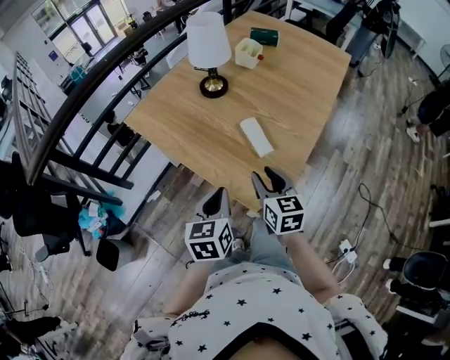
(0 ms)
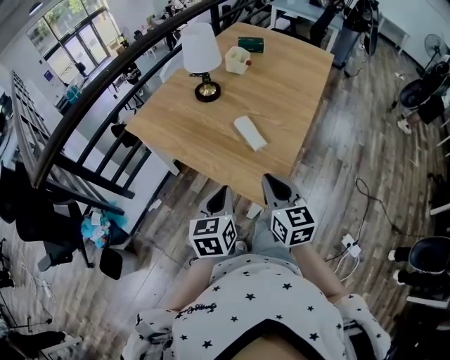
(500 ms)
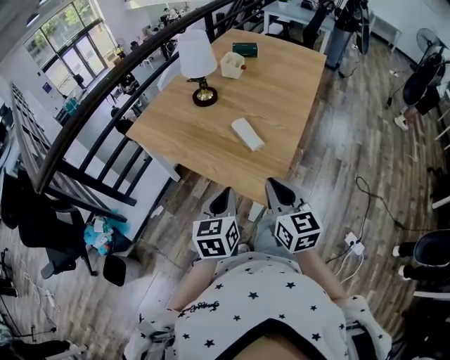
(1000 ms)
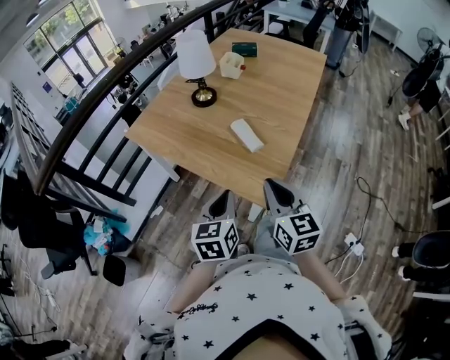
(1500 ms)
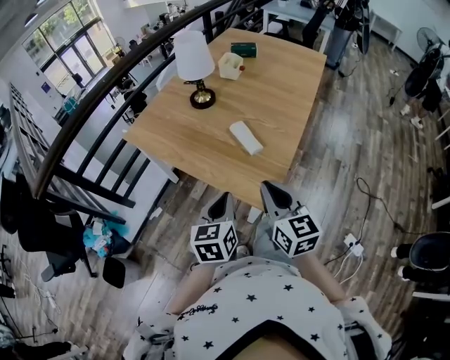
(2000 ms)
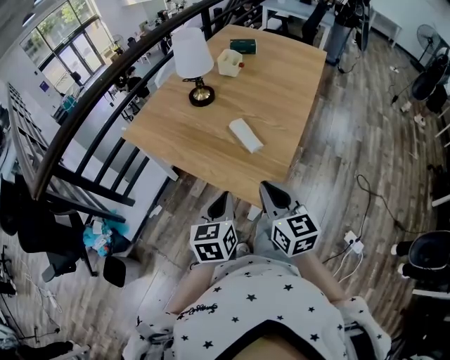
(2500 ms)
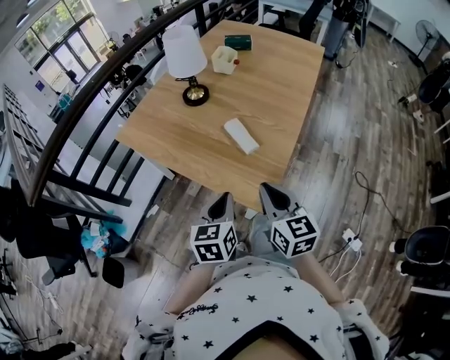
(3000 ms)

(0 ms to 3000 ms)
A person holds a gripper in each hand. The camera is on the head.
0 ms - 1500 ms: The right gripper moves backward and upward, approximately 15 cm, and closes. Meanwhile the left gripper shifts approximately 5 cm backward.
1500 ms - 3000 ms: The grippers make only small movements.

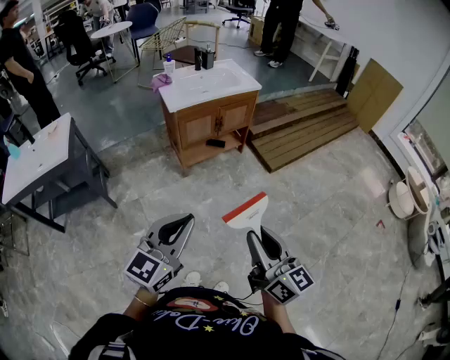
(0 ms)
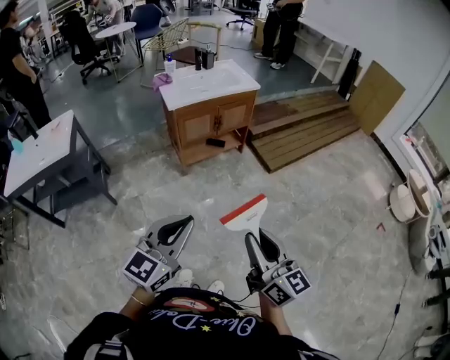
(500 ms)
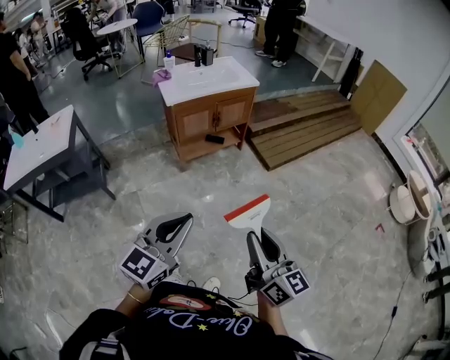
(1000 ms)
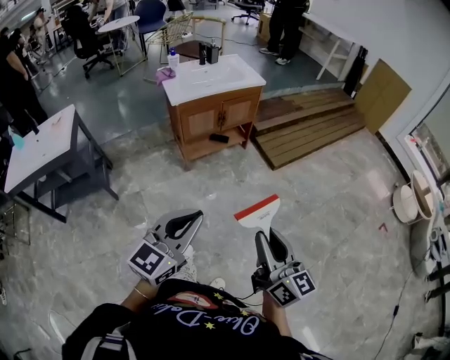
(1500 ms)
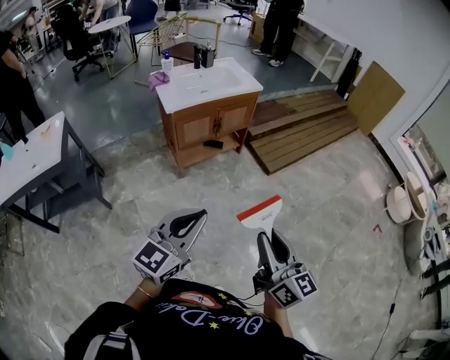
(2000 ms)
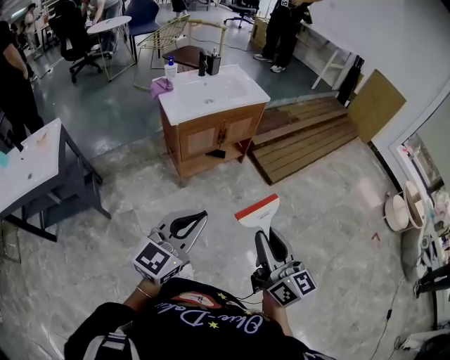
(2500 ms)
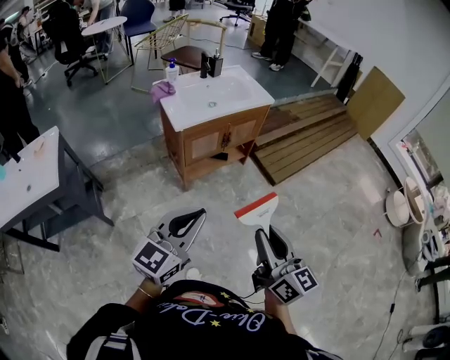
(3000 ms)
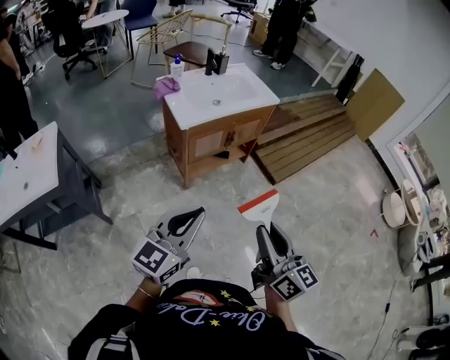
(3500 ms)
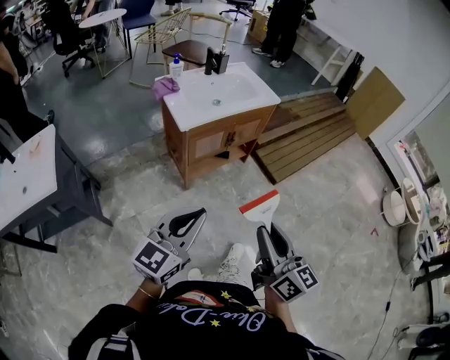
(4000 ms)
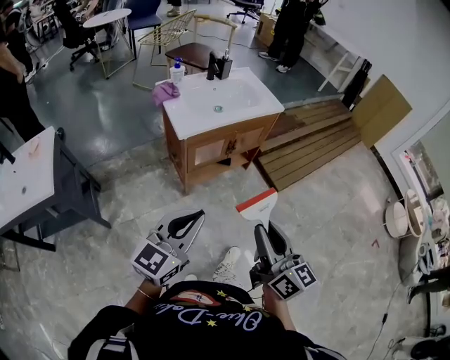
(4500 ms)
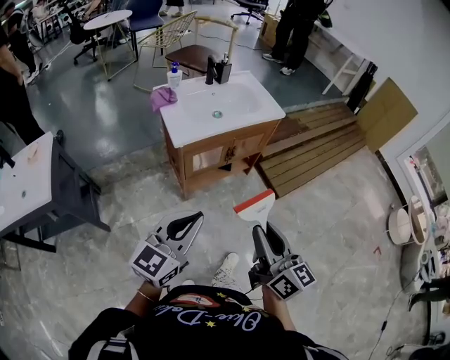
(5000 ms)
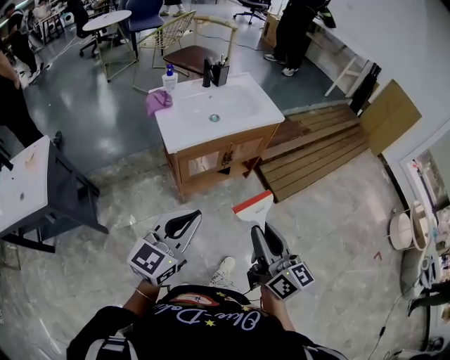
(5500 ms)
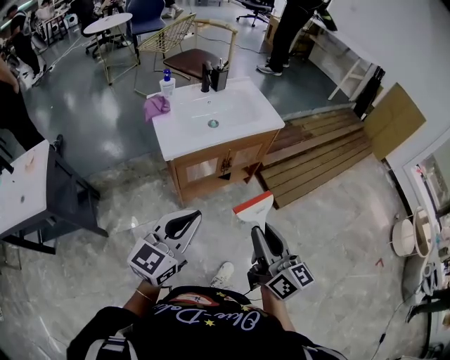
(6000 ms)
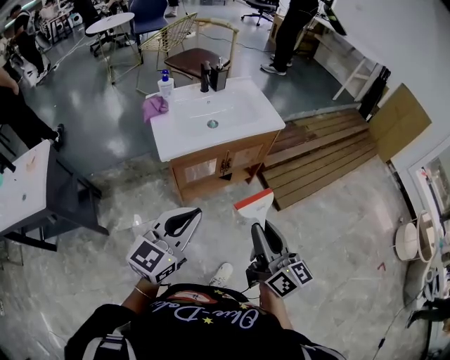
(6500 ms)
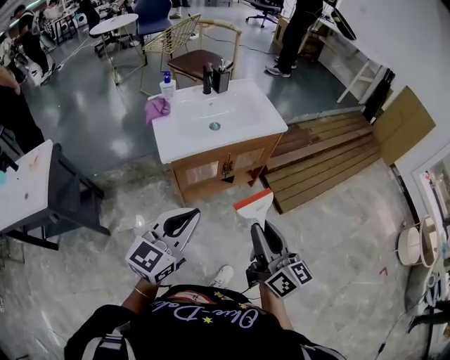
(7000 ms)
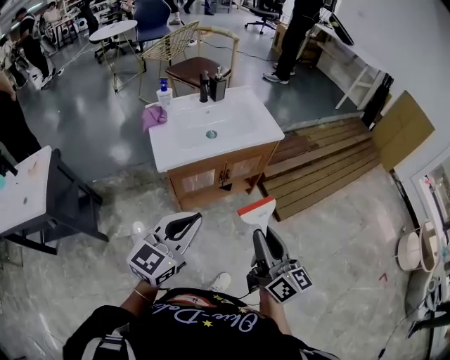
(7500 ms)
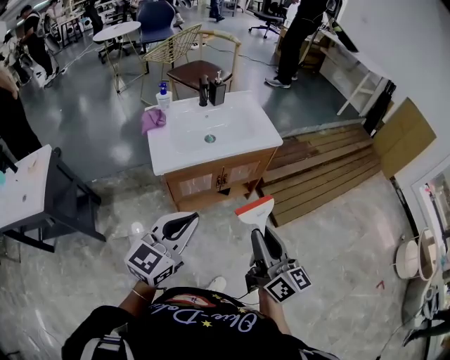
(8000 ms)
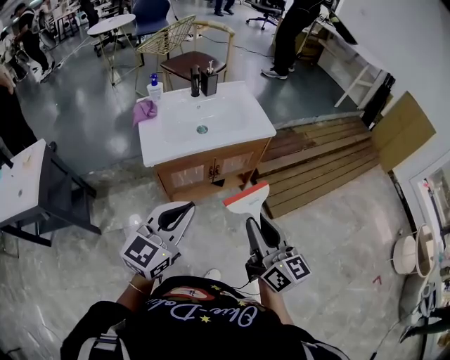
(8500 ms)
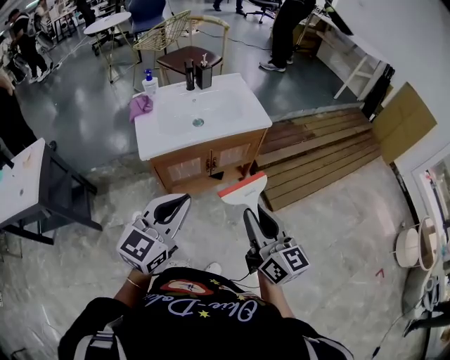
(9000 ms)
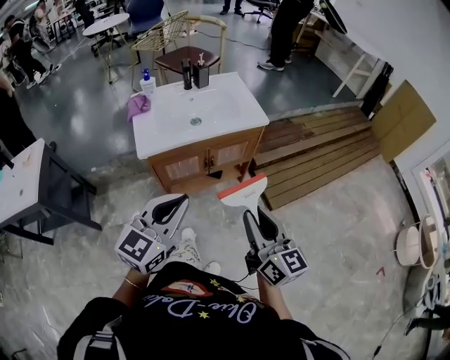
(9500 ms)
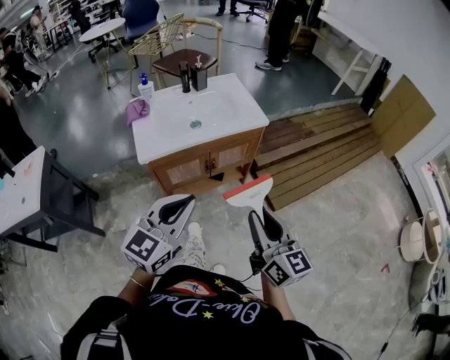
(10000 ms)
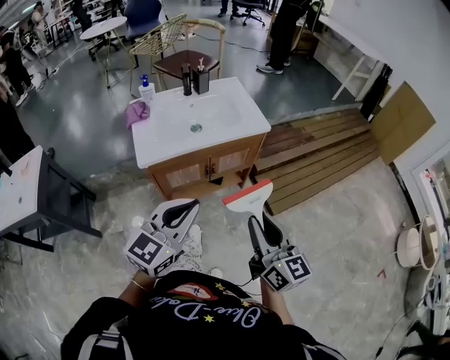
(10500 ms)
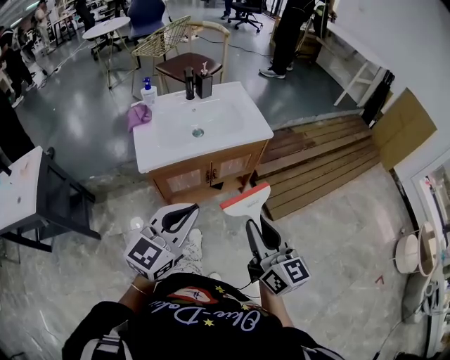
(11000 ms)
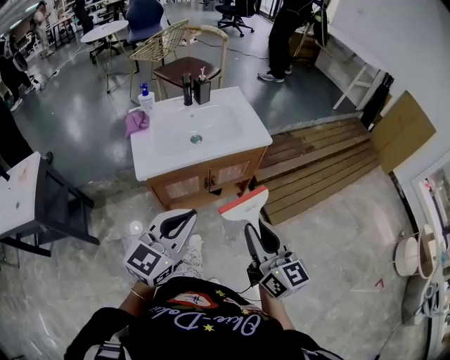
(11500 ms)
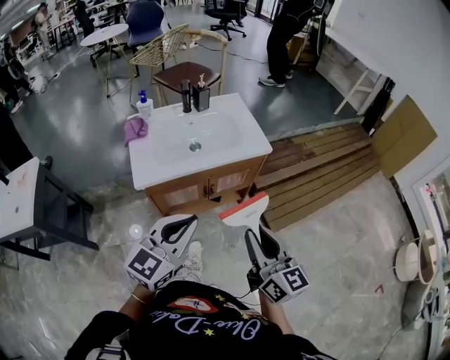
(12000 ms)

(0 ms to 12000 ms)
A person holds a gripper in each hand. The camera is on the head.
0 ms - 2000 ms: The left gripper goes approximately 5 cm forward.
2000 ms - 4000 ms: Both grippers travel together to the left and forward, some 20 cm.
4000 ms - 6000 ms: The two grippers go about 15 cm forward.
6000 ms - 8000 ms: The grippers both shift forward by approximately 5 cm.
8000 ms - 10000 ms: The left gripper heads to the right, covering some 5 cm.
10000 ms - 12000 ms: The two grippers go approximately 5 cm forward.

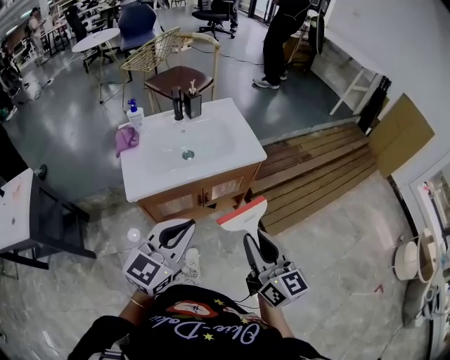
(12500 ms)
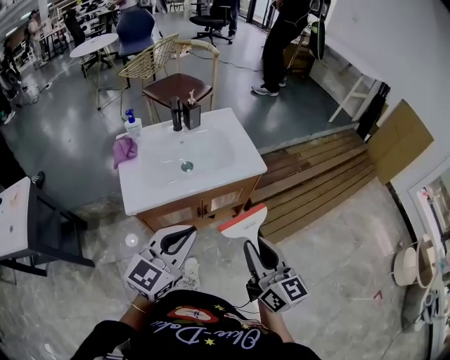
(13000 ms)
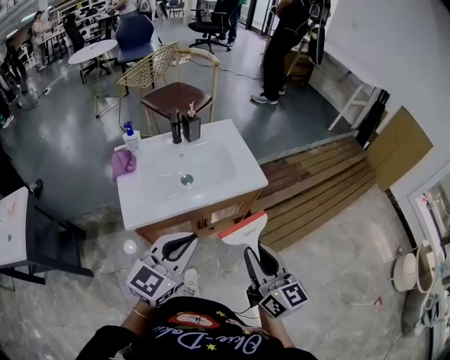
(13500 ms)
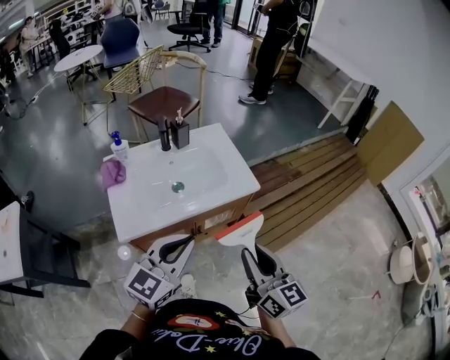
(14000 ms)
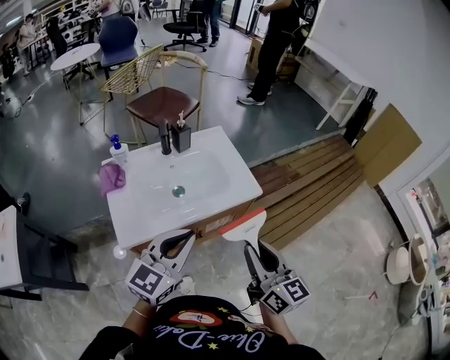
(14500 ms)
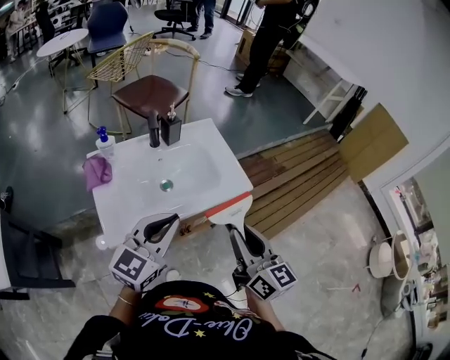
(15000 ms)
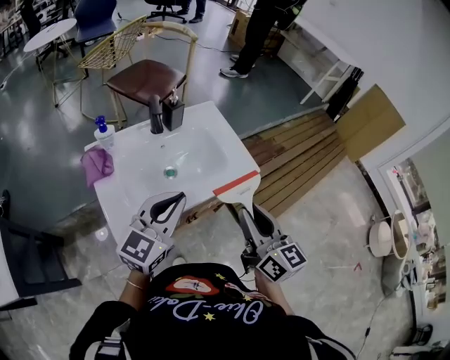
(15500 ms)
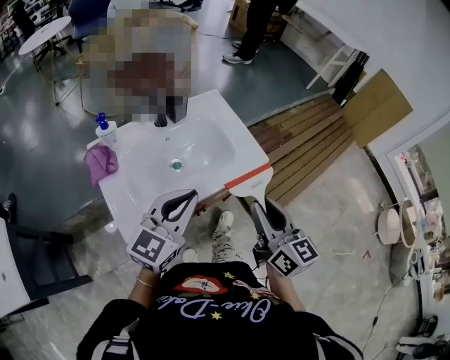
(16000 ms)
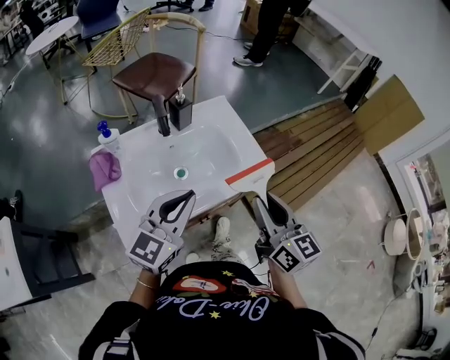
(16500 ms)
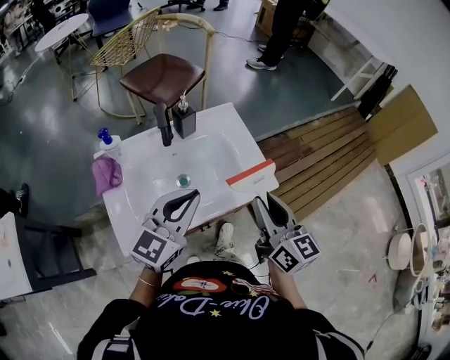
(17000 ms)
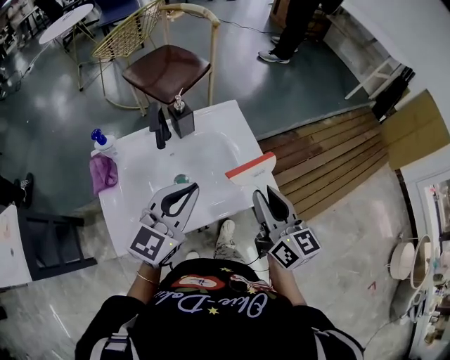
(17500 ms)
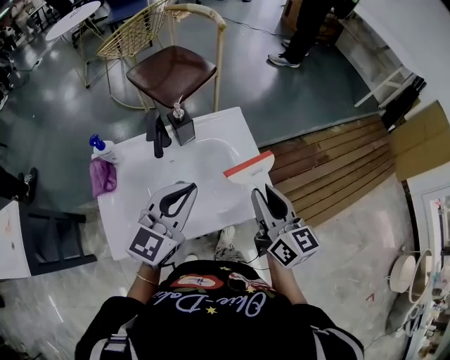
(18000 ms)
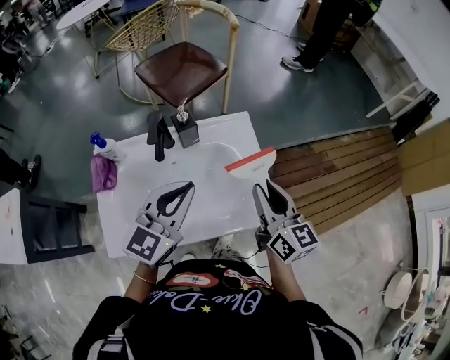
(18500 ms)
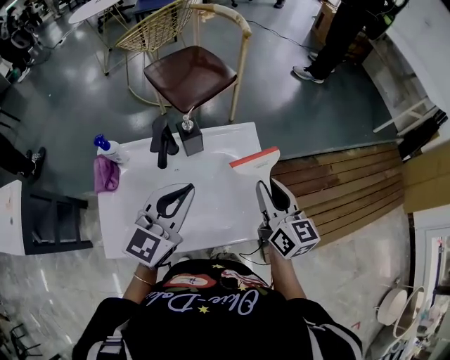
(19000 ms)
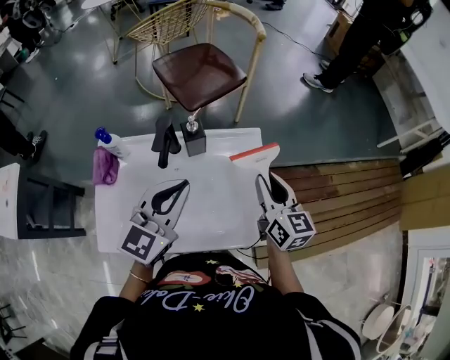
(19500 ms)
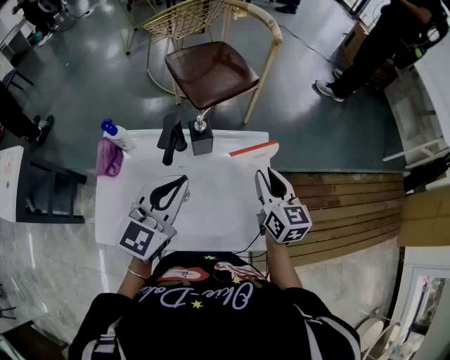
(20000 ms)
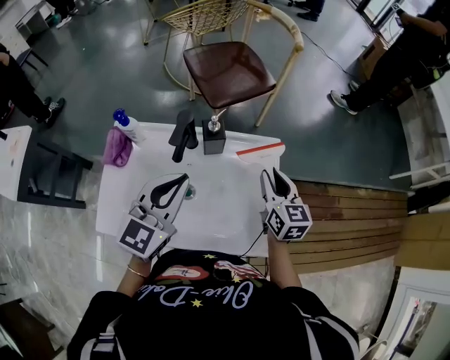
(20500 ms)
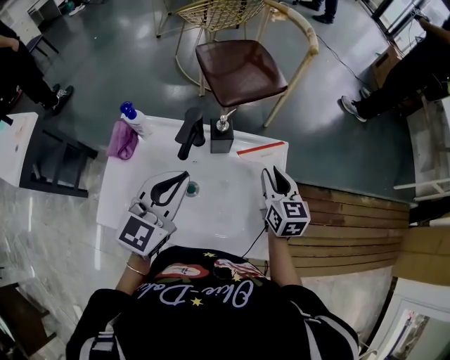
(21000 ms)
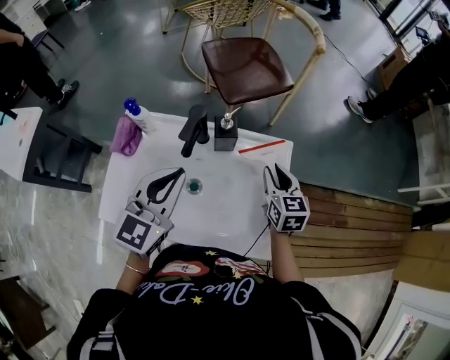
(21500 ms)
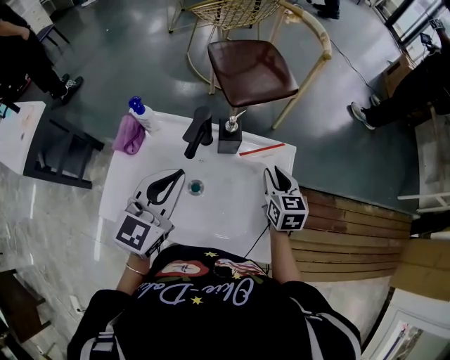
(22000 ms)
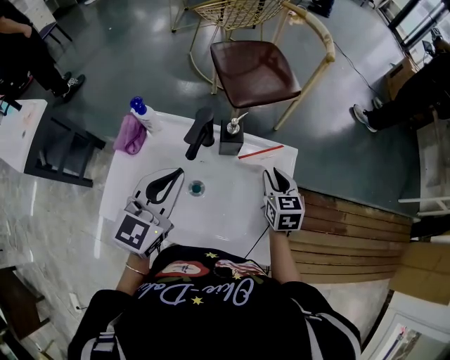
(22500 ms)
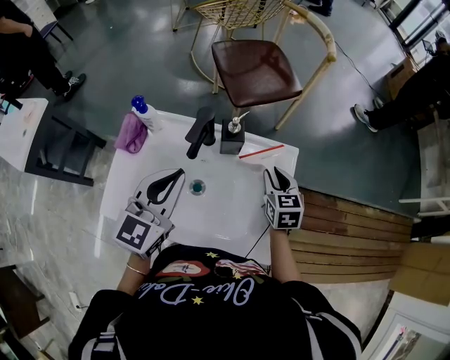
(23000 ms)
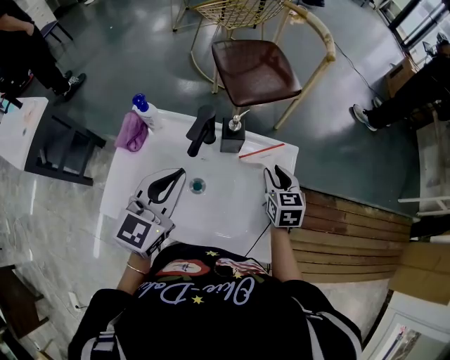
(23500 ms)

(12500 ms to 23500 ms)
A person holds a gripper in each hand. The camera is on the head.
12500 ms - 14500 ms: Both grippers travel together forward, some 10 cm.
14500 ms - 16000 ms: The grippers both shift forward by roughly 5 cm.
16000 ms - 18000 ms: The two grippers go roughly 15 cm forward.
18000 ms - 20000 ms: The left gripper heads forward, covering some 5 cm. Meanwhile the right gripper is displaced forward by some 15 cm.
20000 ms - 21500 ms: The right gripper moves downward, some 5 cm.
21500 ms - 23500 ms: The grippers make only small movements.

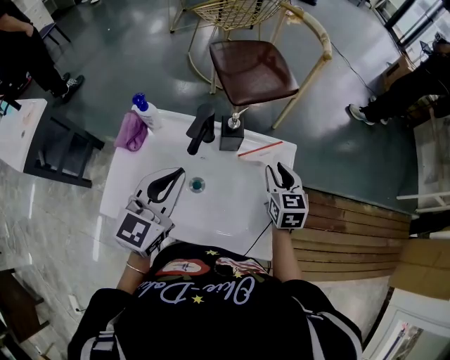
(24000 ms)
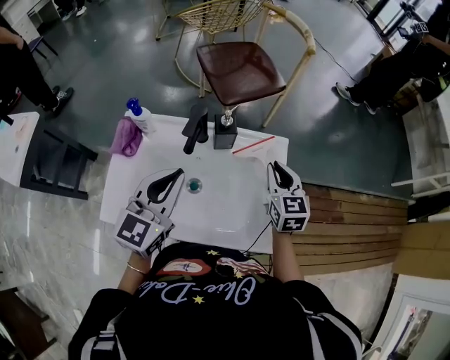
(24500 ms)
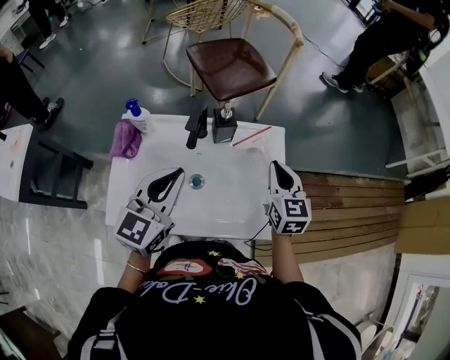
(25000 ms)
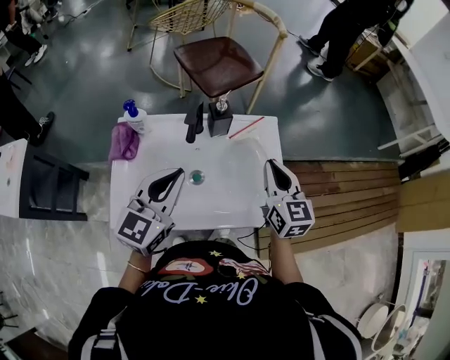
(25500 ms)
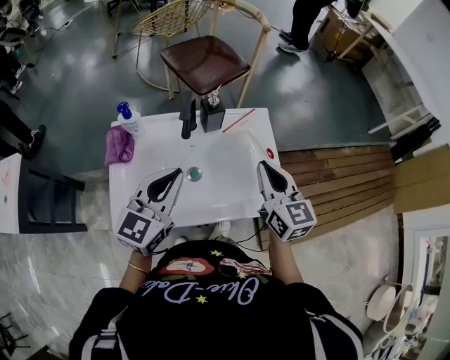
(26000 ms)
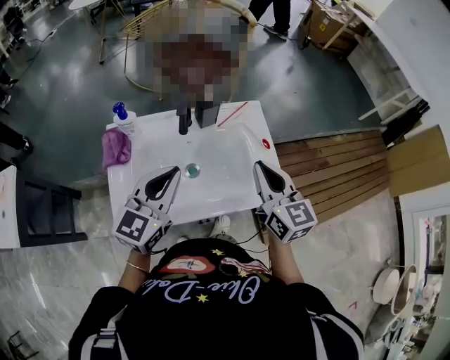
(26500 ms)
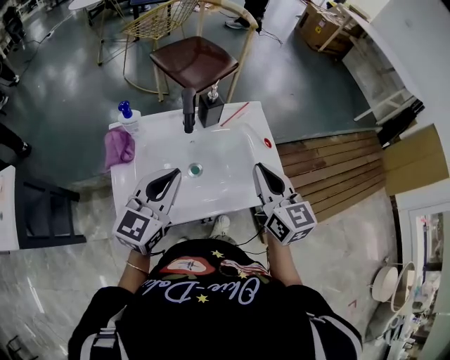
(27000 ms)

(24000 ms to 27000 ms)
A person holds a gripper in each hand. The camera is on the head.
24000 ms - 25500 ms: The right gripper heads backward and upward, covering roughly 15 cm, swivels about 20 degrees, and closes.
25500 ms - 27000 ms: The right gripper is displaced backward by approximately 10 cm.
